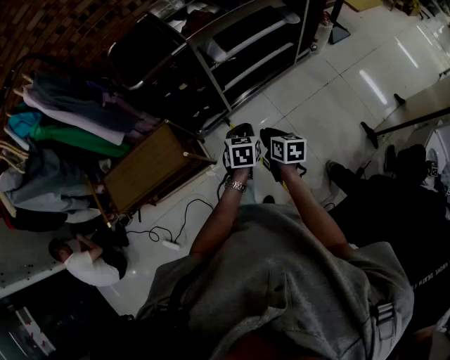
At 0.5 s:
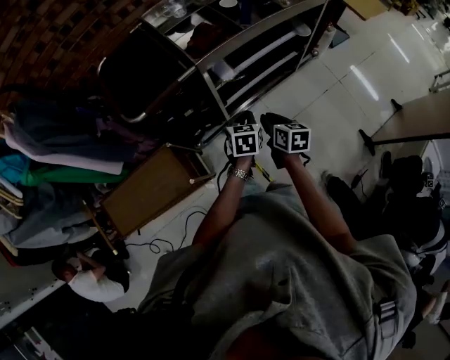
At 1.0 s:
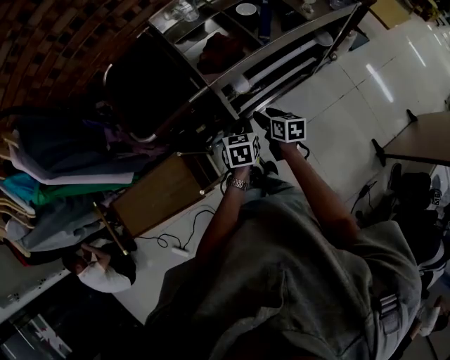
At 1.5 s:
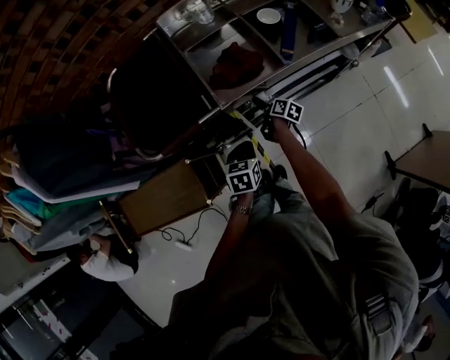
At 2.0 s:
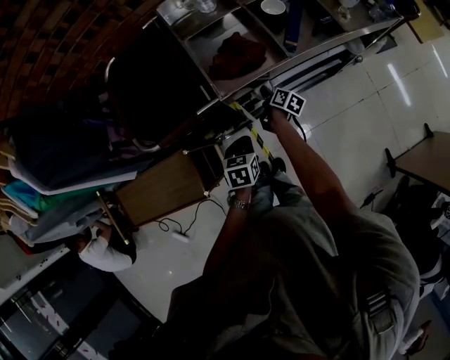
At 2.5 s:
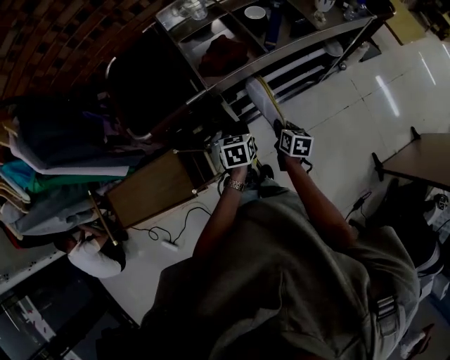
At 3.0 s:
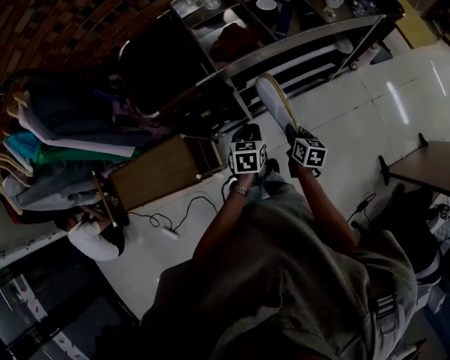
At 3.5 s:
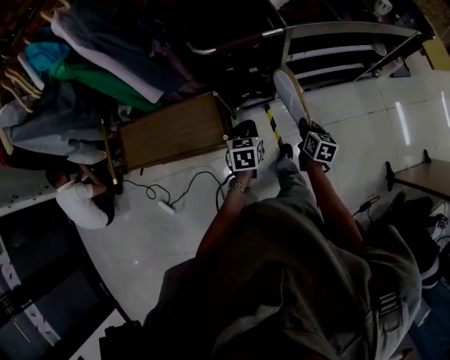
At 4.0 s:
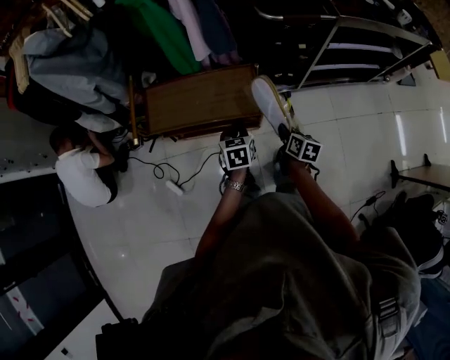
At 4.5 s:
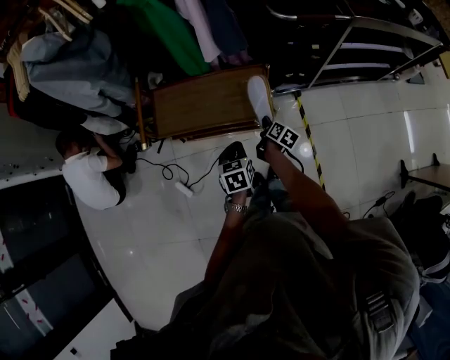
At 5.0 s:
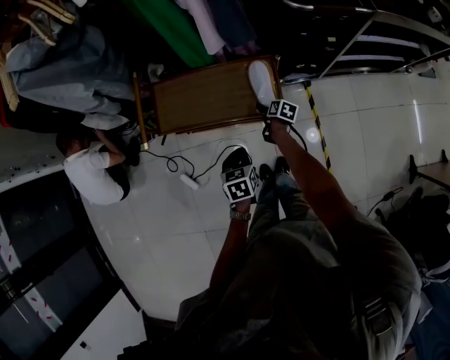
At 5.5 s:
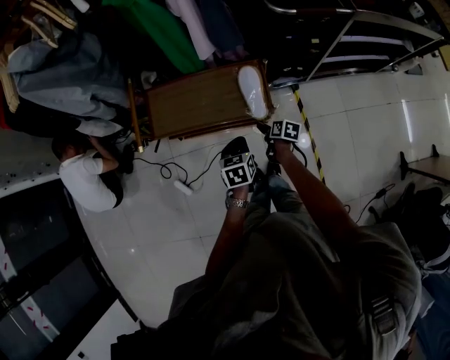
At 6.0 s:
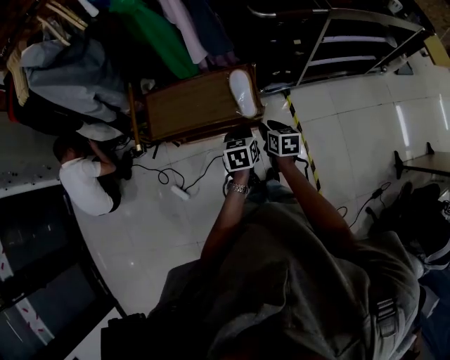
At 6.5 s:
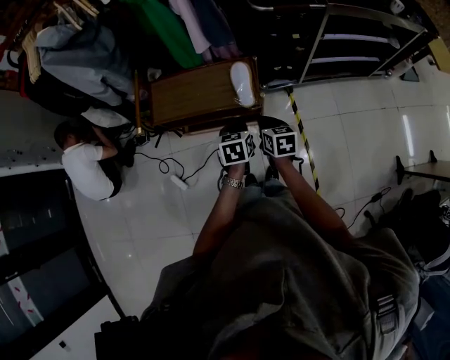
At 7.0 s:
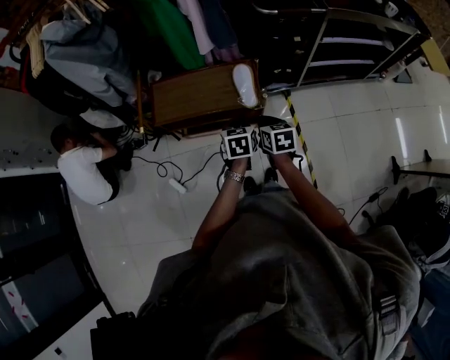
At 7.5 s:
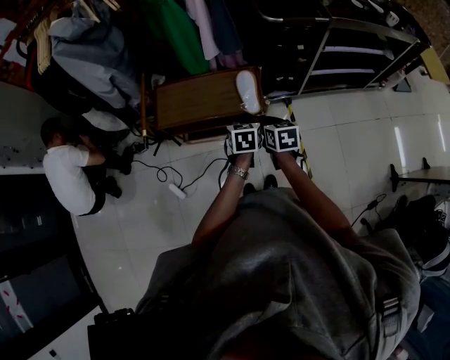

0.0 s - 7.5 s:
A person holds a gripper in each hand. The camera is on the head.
0.0 s - 2.0 s: The right gripper moves forward, about 50 cm, changes its angle by approximately 30 degrees, and opens and closes again, while the left gripper heads forward, covering about 30 cm.
2.0 s - 4.0 s: Both grippers are carried backward and to the left, some 60 cm. The right gripper turns by roughly 30 degrees.
4.0 s - 5.5 s: The right gripper moves downward and to the left, about 20 cm, rotates roughly 20 degrees, and opens its fingers.
5.5 s - 7.5 s: The right gripper is displaced upward by about 25 cm, turns by roughly 40 degrees, and closes; the left gripper travels upward by approximately 10 cm.

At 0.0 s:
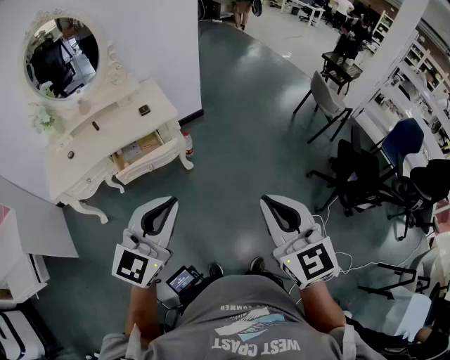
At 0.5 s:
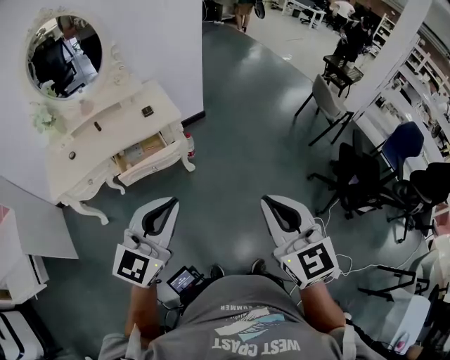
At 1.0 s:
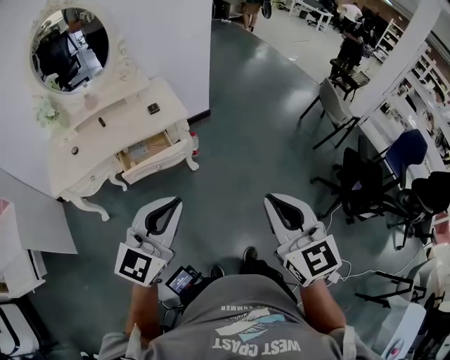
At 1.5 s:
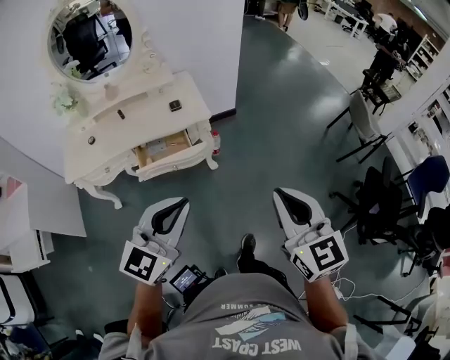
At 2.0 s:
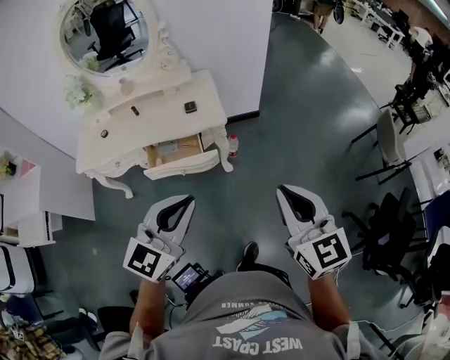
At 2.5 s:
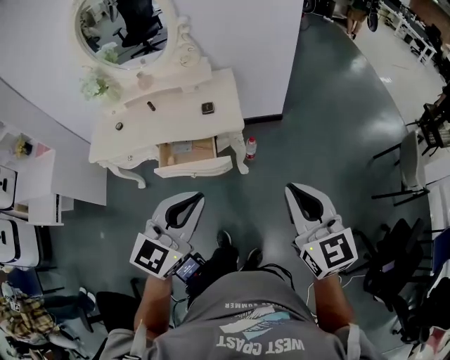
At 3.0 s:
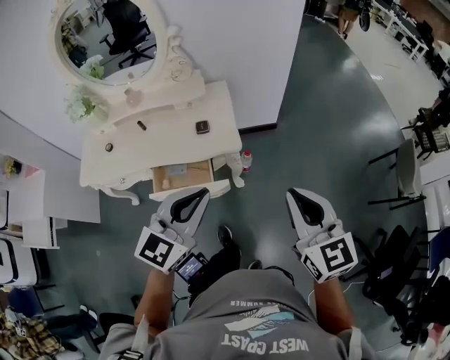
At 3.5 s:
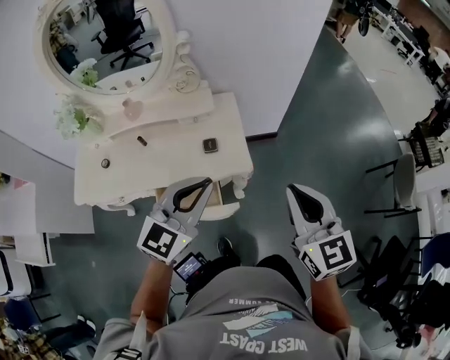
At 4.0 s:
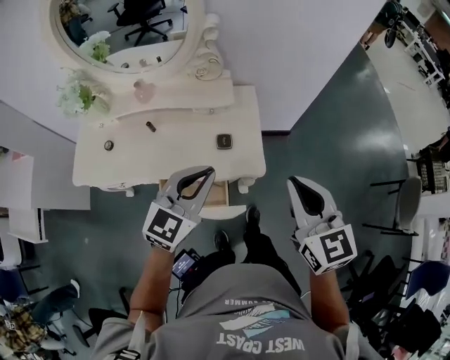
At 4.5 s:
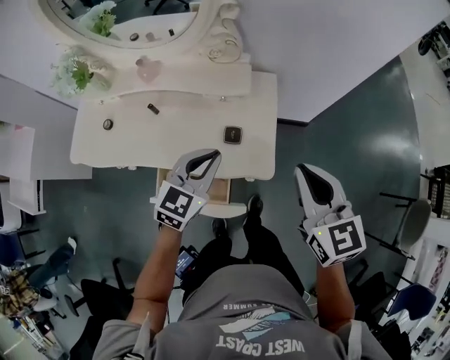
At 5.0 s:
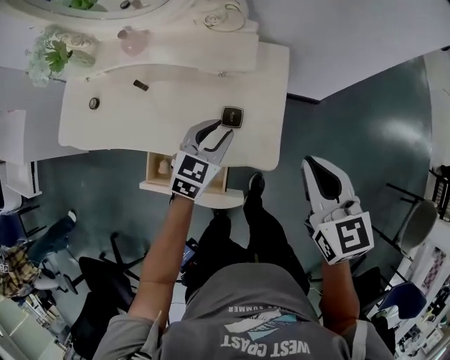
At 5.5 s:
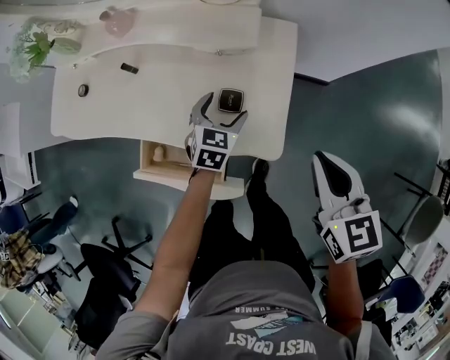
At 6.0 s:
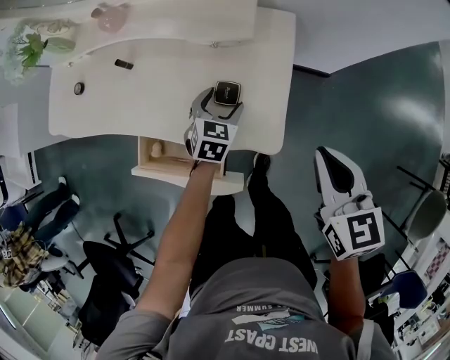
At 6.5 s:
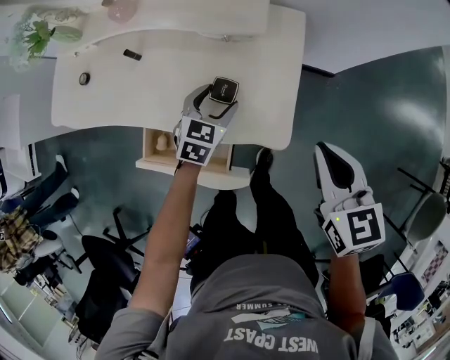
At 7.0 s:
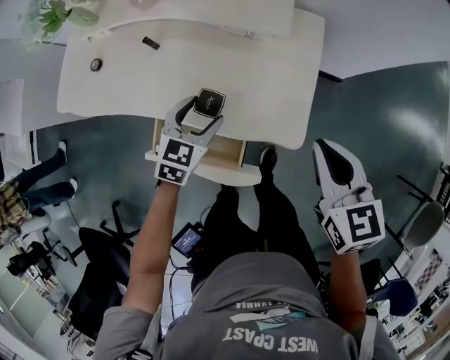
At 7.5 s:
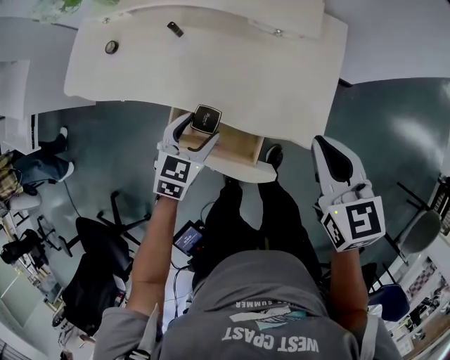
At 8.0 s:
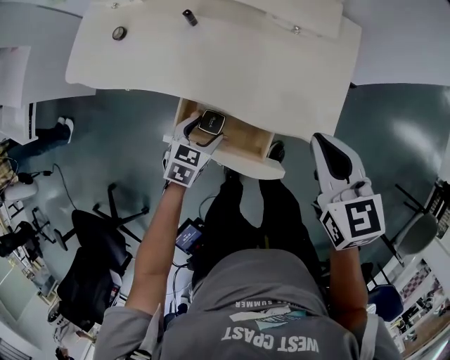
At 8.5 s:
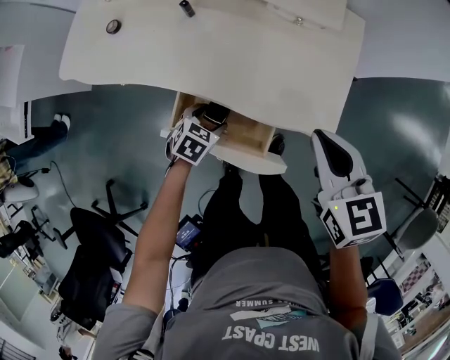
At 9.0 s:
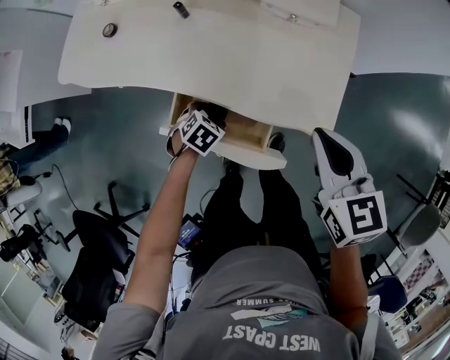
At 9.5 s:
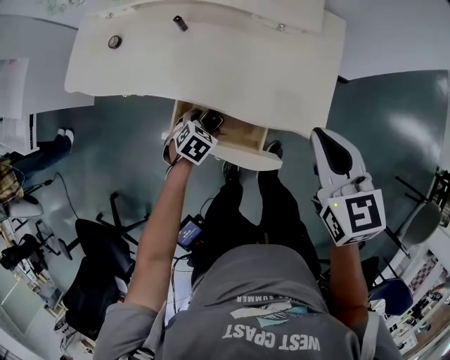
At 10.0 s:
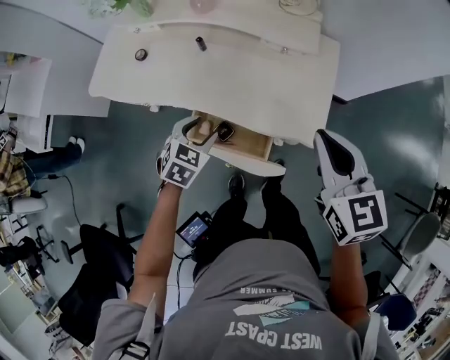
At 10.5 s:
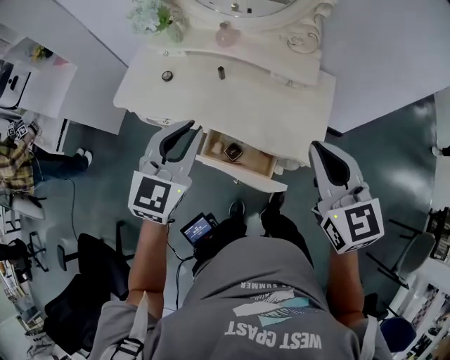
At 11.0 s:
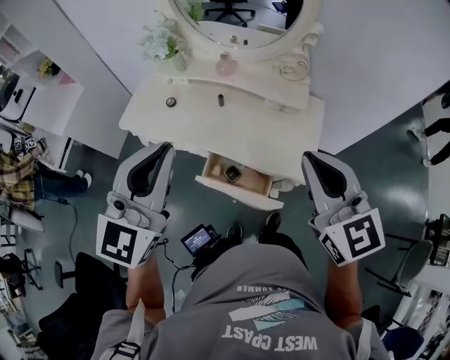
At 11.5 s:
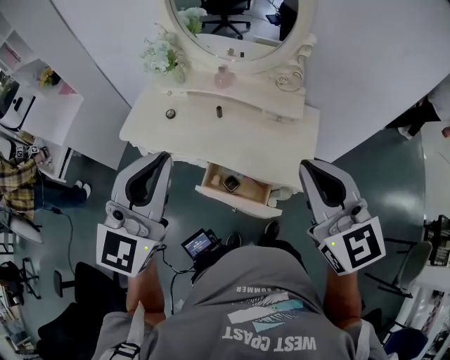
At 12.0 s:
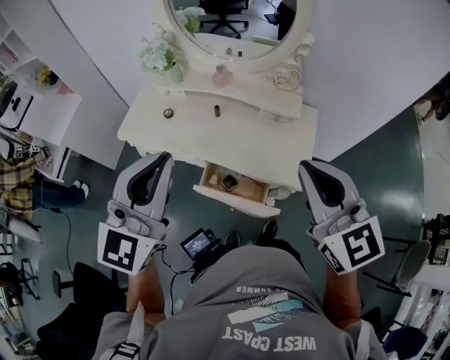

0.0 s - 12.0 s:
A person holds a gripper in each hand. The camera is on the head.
0.0 s - 2.0 s: Both grippers move forward, some 25 cm.
2.0 s - 4.0 s: The pair of grippers is taken forward, roughly 40 cm.
4.0 s - 6.0 s: The right gripper moves downward and forward, roughly 25 cm, and rotates roughly 20 degrees, while the left gripper goes about 40 cm downward and forward, tilts its fingers some 30 degrees downward, and opens.
6.0 s - 8.0 s: The right gripper travels to the left by approximately 20 cm. The left gripper moves to the left and backward, approximately 25 cm.
8.0 s - 10.0 s: The grippers both shift upward by approximately 15 cm.
10.0 s - 12.0 s: The left gripper heads upward, covering some 40 cm, tips its fingers upward by roughly 50 degrees, and closes up, while the right gripper goes some 20 cm upward, and rotates some 20 degrees.

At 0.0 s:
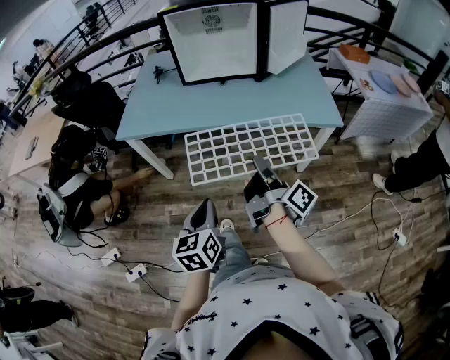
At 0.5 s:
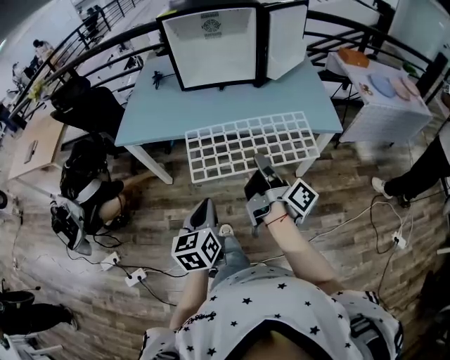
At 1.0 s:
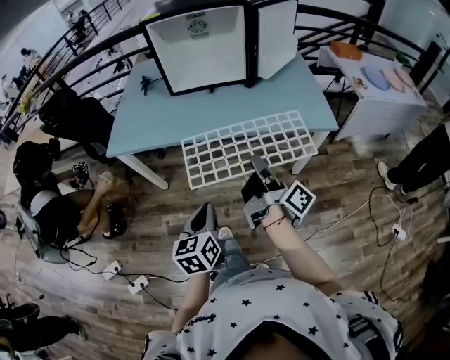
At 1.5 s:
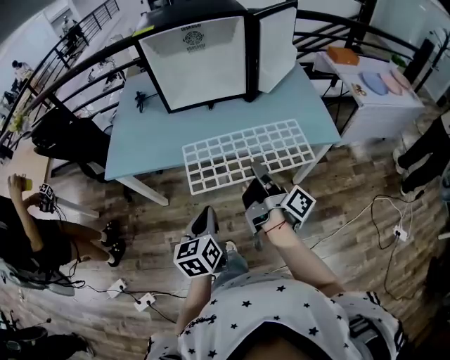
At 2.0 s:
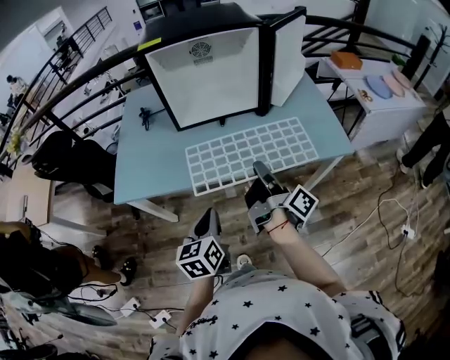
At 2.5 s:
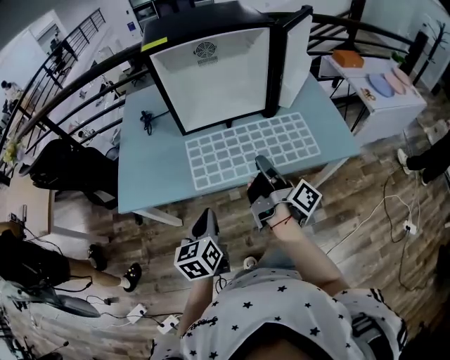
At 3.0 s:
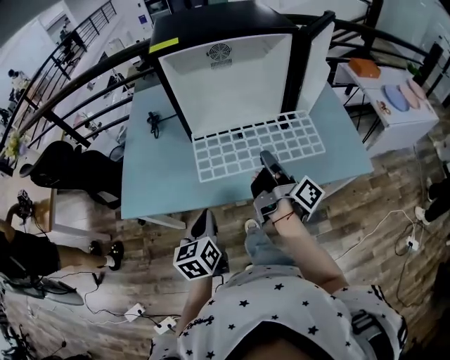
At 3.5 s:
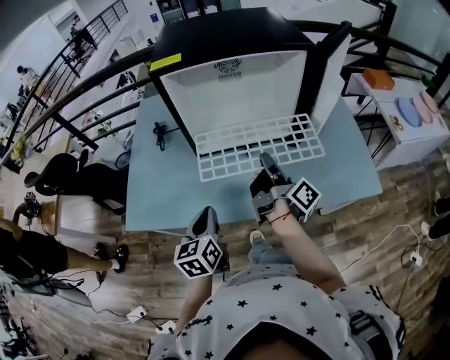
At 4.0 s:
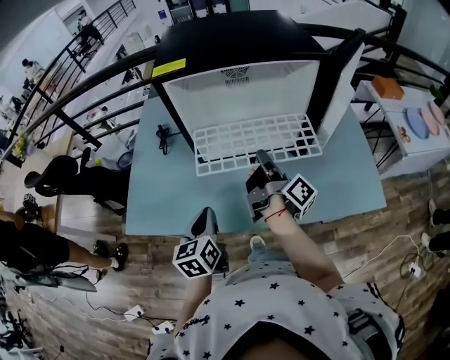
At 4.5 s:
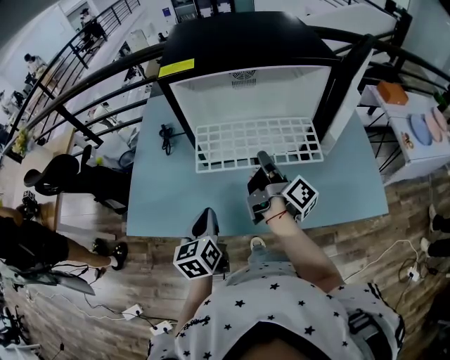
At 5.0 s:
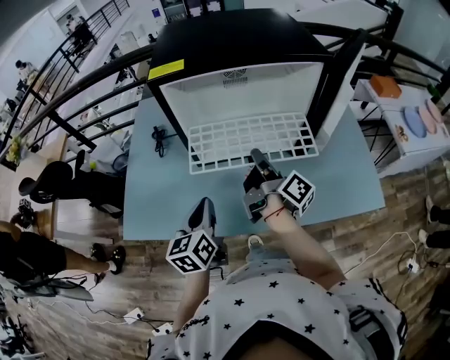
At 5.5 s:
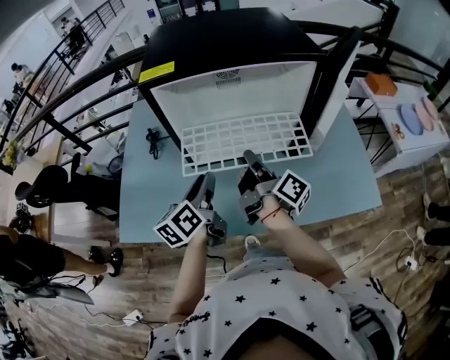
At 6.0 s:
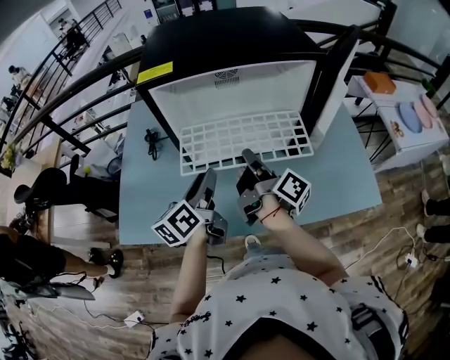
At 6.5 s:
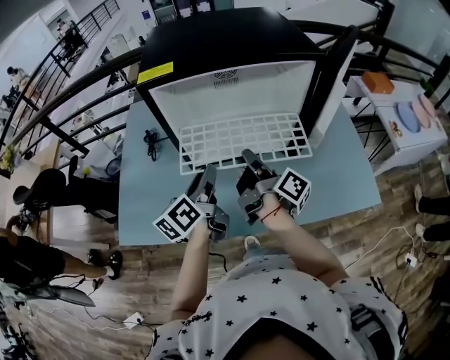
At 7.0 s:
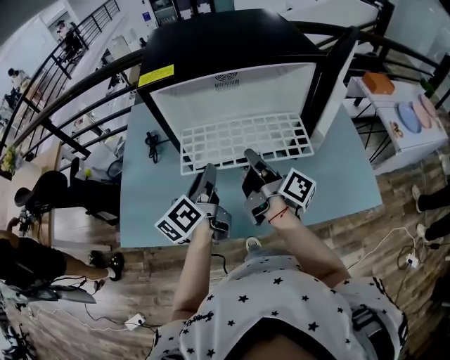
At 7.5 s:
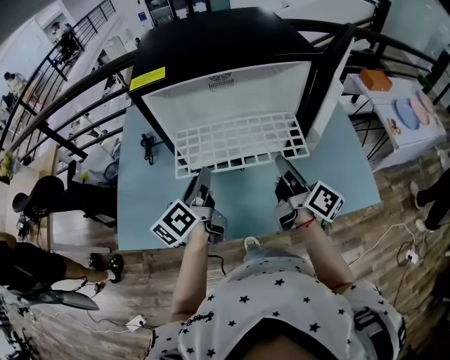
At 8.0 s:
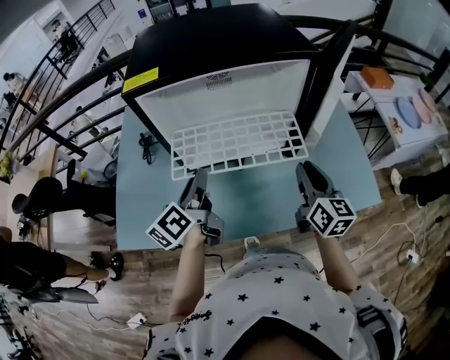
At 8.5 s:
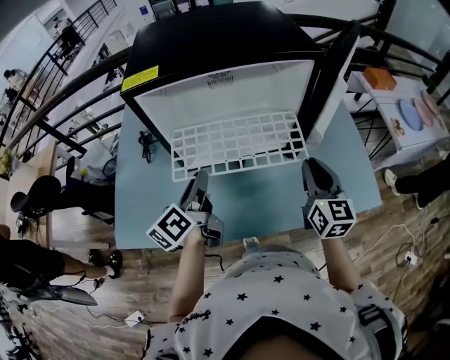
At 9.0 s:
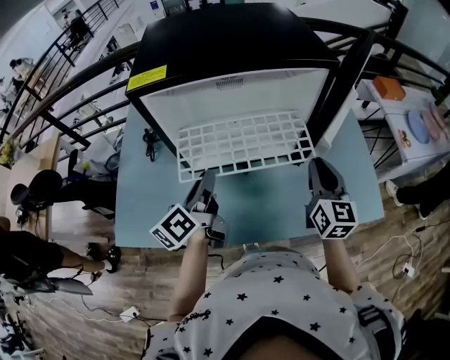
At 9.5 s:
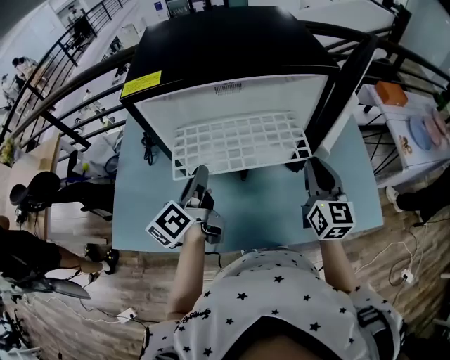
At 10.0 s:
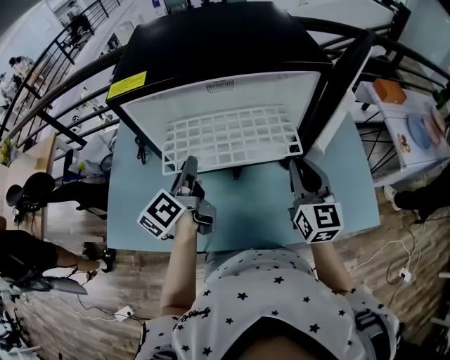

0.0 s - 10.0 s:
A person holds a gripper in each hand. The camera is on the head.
0.0 s - 2.0 s: The grippers both shift forward by some 20 cm.
2.0 s - 4.0 s: Both grippers move forward, roughly 20 cm.
4.0 s - 6.0 s: The left gripper heads forward and upward, covering roughly 10 cm, changes its angle by approximately 30 degrees, and opens up.
6.0 s - 8.0 s: The right gripper shifts about 15 cm to the right, and rotates around the line of its fingers by roughly 60 degrees, counterclockwise from behind.
8.0 s - 10.0 s: The grippers both shift forward by about 5 cm.
